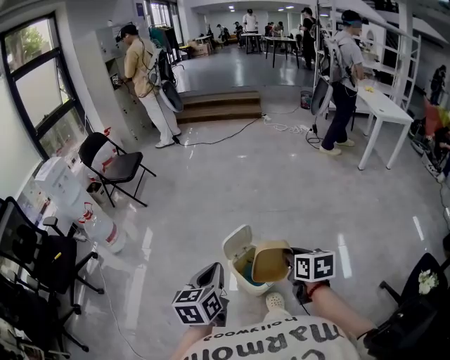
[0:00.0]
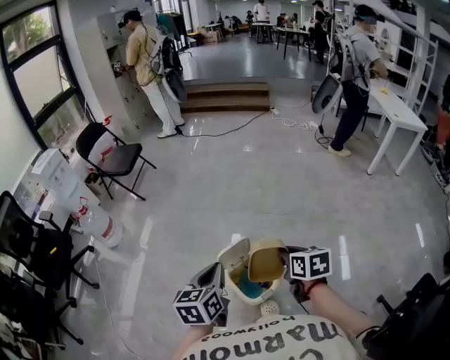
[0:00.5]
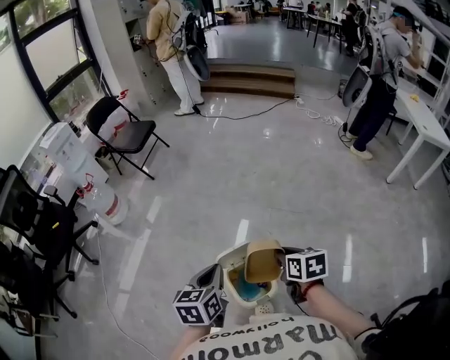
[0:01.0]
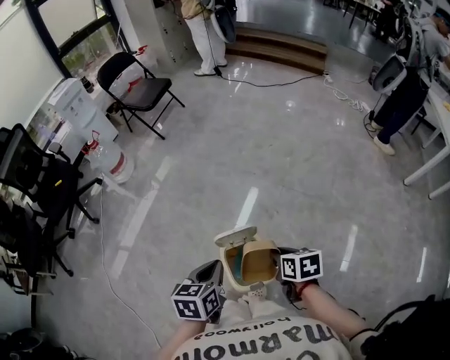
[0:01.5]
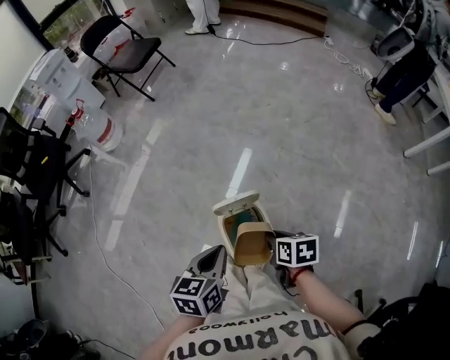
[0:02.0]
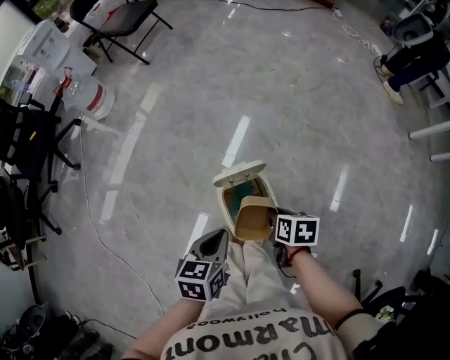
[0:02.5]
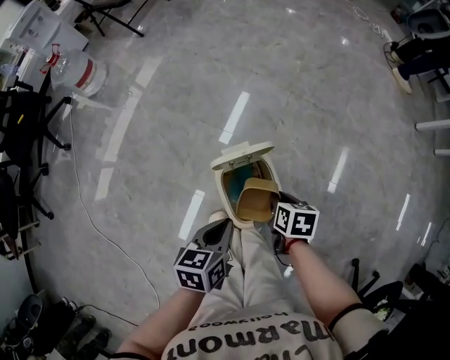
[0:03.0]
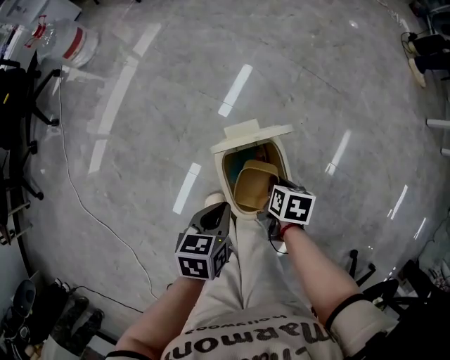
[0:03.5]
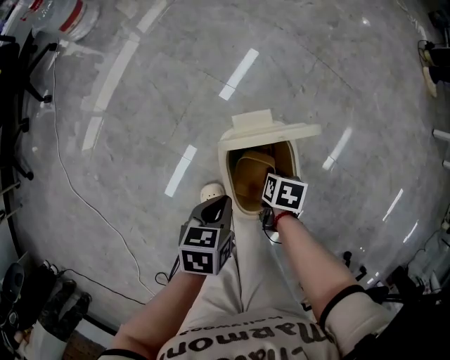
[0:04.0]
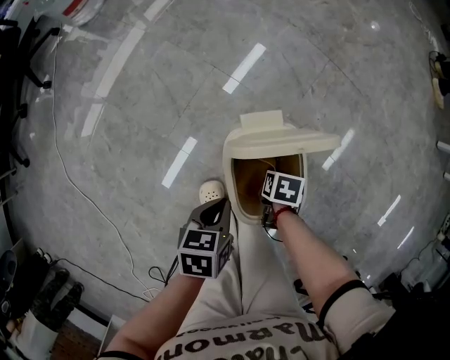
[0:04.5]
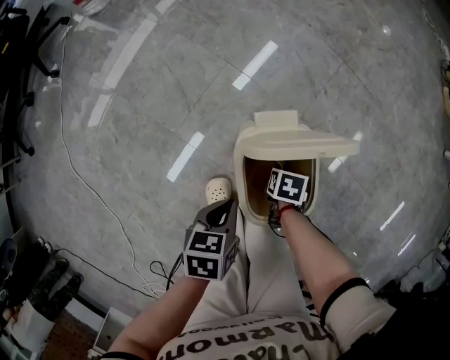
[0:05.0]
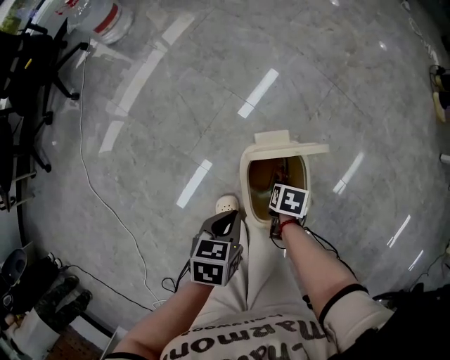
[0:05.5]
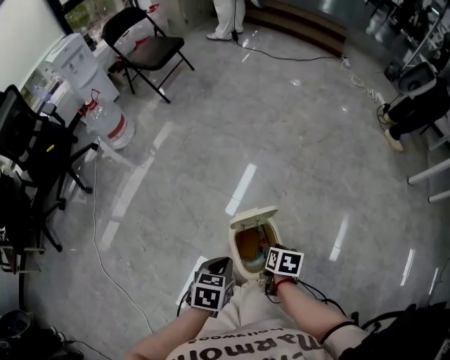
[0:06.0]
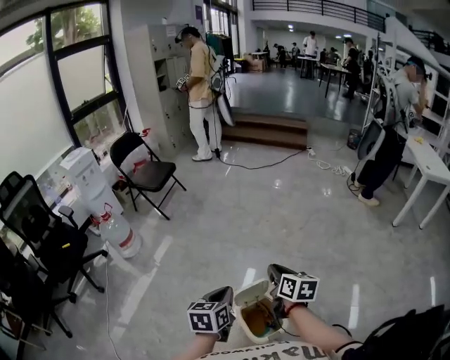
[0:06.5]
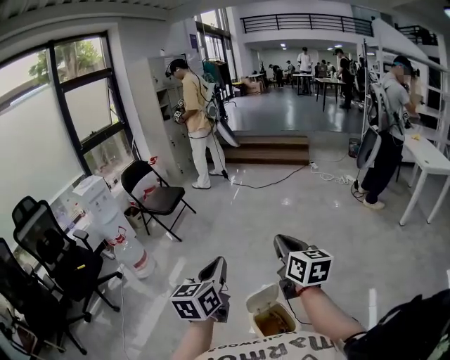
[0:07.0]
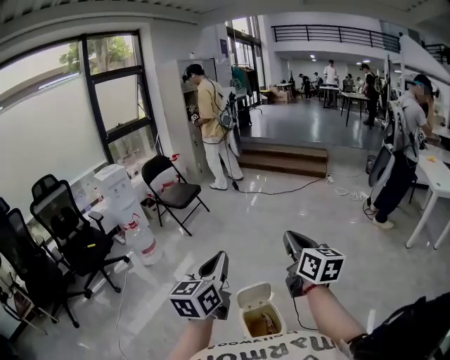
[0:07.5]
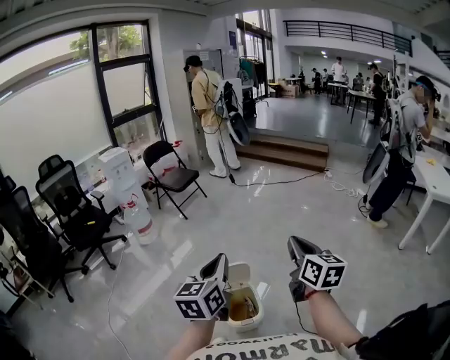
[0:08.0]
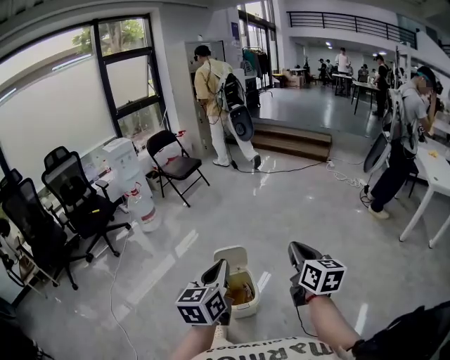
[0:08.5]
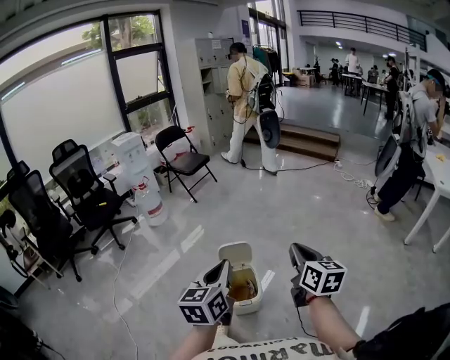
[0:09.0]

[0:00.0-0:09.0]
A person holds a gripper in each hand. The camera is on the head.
0.0 to 2.0 s: The grippers both shift downward by roughly 20 cm. The right gripper changes its angle by roughly 30 degrees.
2.0 to 4.5 s: Both grippers move downward, roughly 35 cm. The left gripper turns by approximately 20 degrees; the right gripper turns by some 30 degrees.
4.5 to 7.0 s: The grippers both shift upward by approximately 70 cm. The left gripper tilts its fingers approximately 50 degrees upward; the right gripper tilts its fingers about 80 degrees upward.
7.0 to 9.0 s: Both grippers move backward and to the right, some 30 cm.

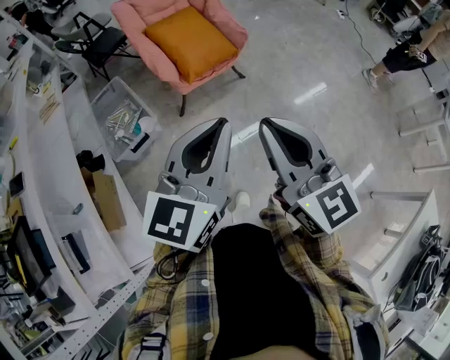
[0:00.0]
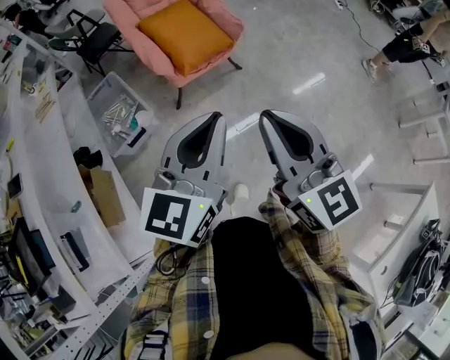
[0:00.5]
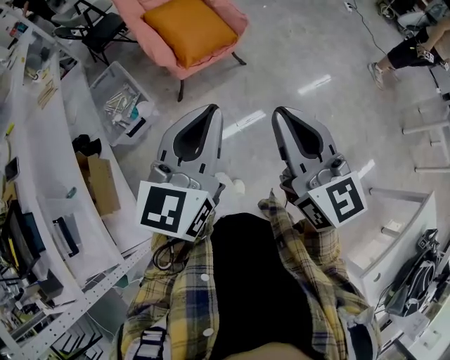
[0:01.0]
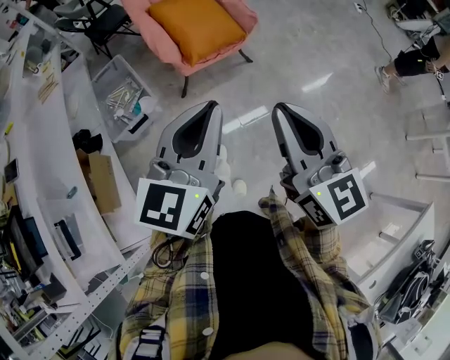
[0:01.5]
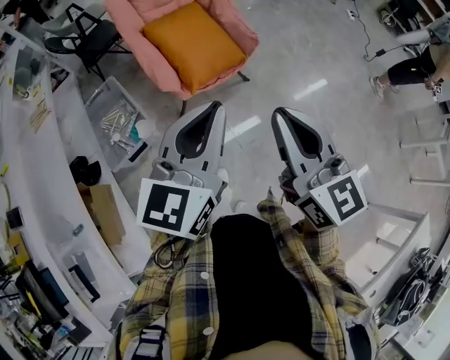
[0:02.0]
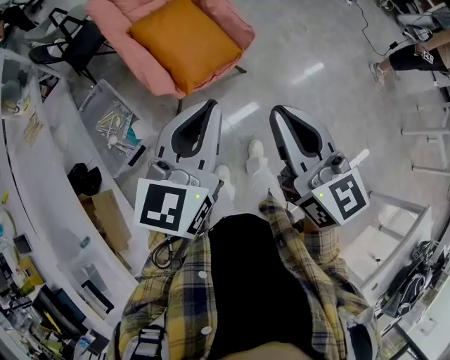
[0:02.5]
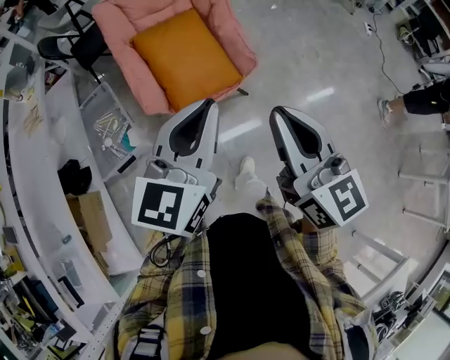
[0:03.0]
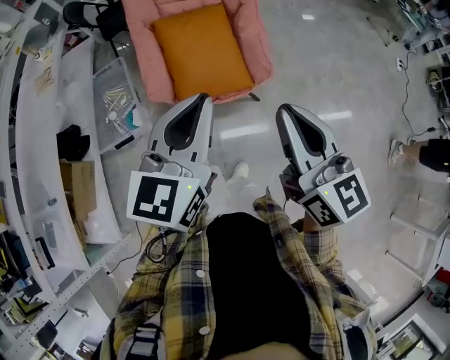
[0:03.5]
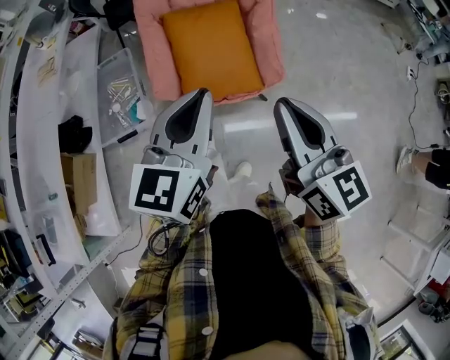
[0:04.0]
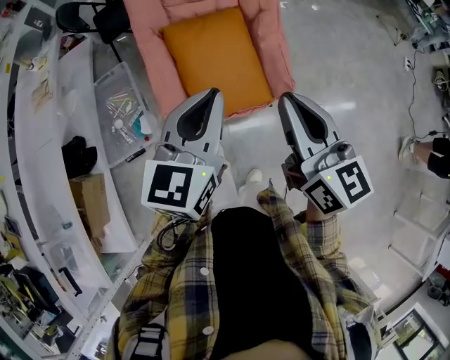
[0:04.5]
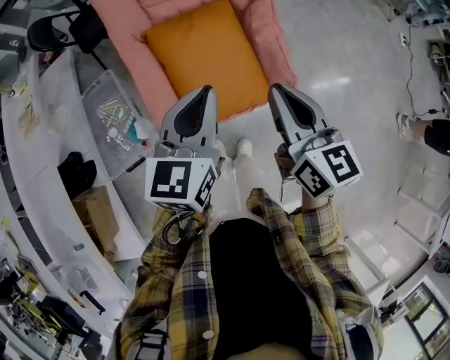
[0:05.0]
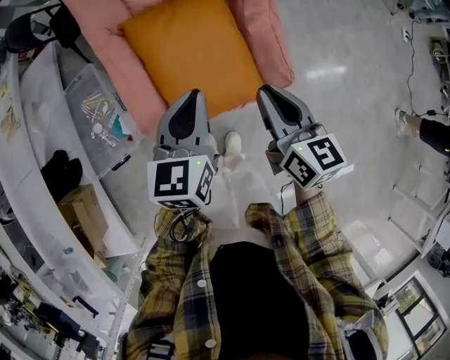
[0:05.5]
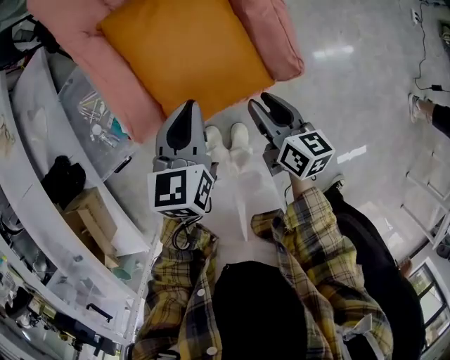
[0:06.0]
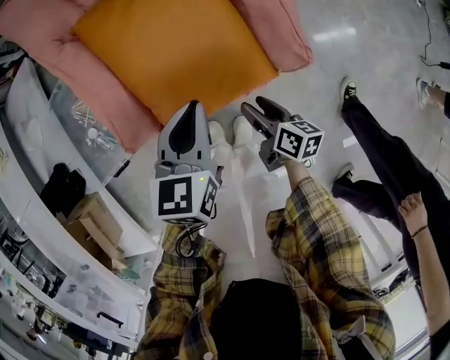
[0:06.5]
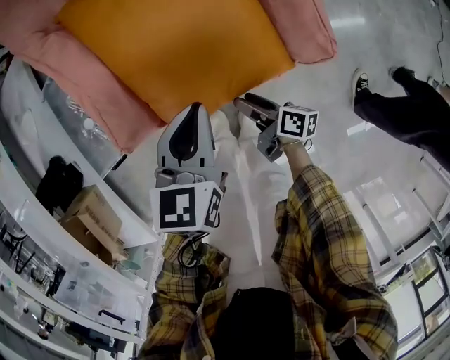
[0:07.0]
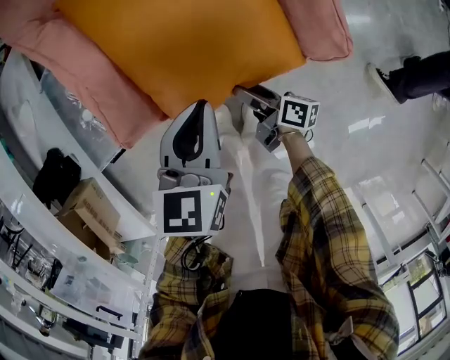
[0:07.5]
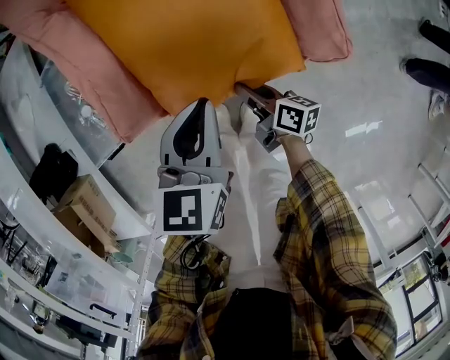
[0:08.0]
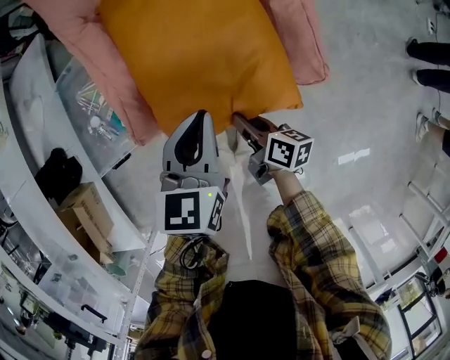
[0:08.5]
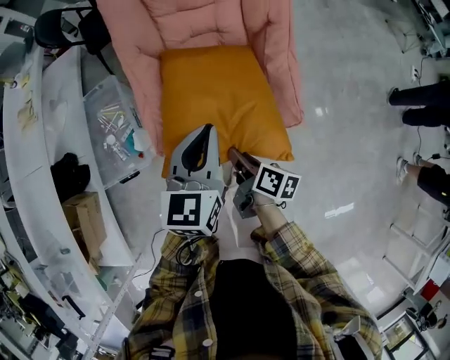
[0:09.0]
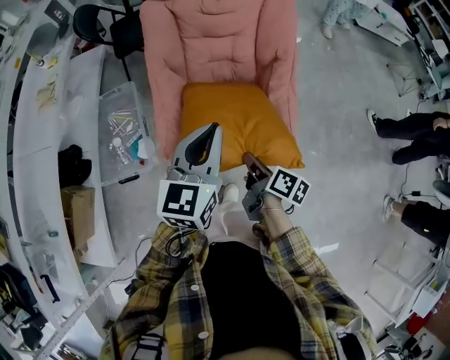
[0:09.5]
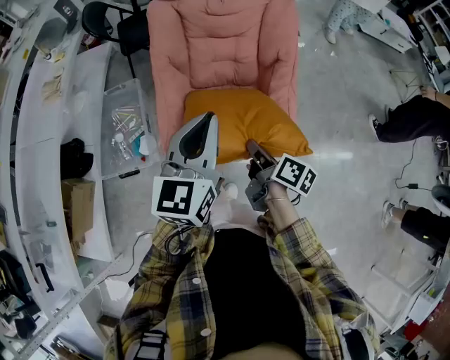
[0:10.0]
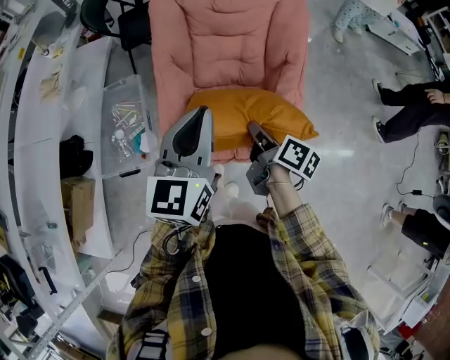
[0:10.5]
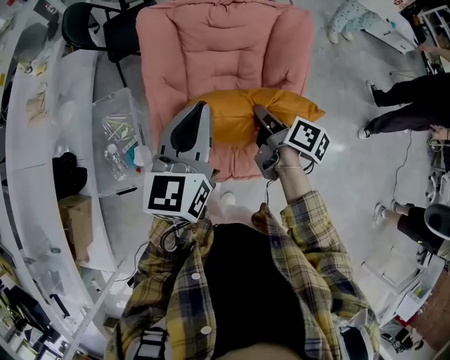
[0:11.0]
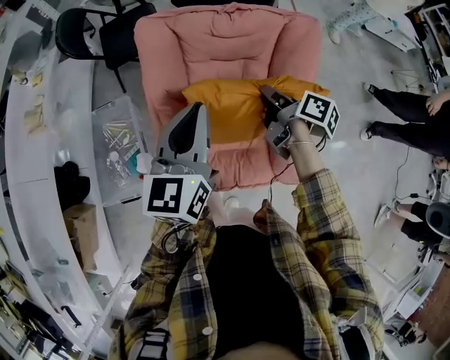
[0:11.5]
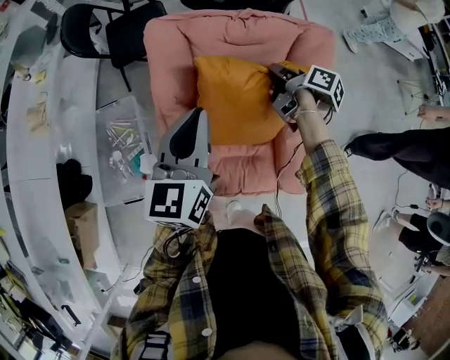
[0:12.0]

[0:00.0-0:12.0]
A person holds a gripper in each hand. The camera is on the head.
0.0 to 2.0 s: The two grippers go roughly 20 cm forward.
2.0 to 4.0 s: The left gripper ends up about 30 cm from where it was, and rotates roughly 30 degrees. Meanwhile the right gripper changes place by roughly 35 cm, and rotates approximately 20 degrees.
4.0 to 6.0 s: The two grippers go about 40 cm downward and forward. The right gripper rotates approximately 30 degrees, and opens its fingers.
6.0 to 8.0 s: The left gripper shifts approximately 10 cm downward. The right gripper heads downward, covering some 25 cm, rotates approximately 30 degrees, and opens, then closes once more.
8.0 to 10.0 s: Both grippers move upward, some 40 cm. The left gripper swivels approximately 30 degrees.
10.0 to 12.0 s: The right gripper heads forward, covering roughly 50 cm, while the left gripper moves forward, some 30 cm.

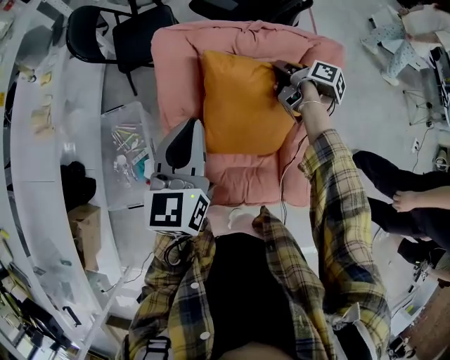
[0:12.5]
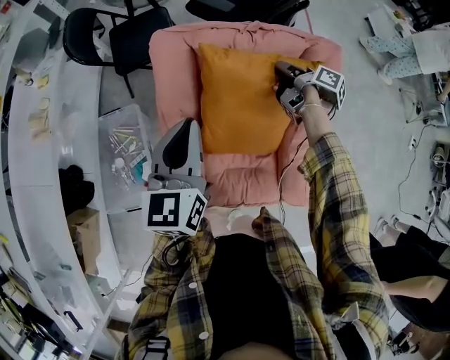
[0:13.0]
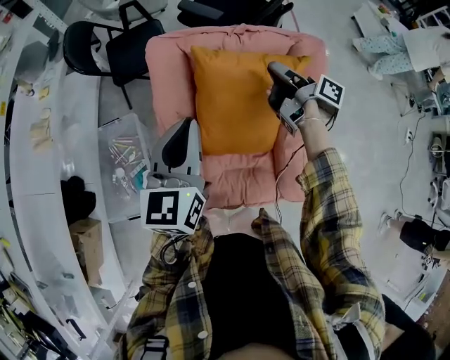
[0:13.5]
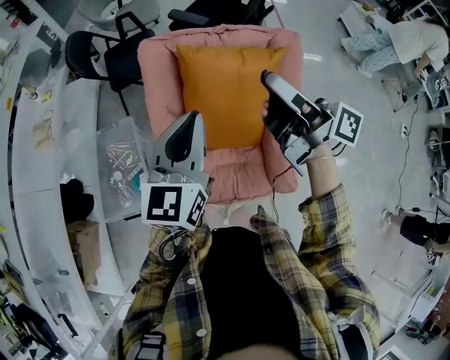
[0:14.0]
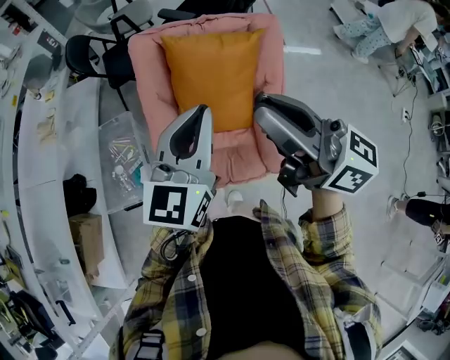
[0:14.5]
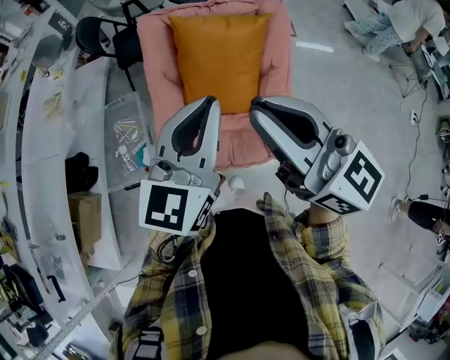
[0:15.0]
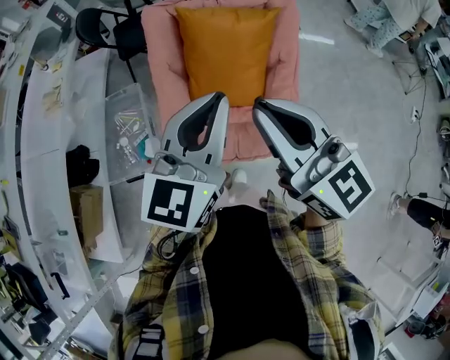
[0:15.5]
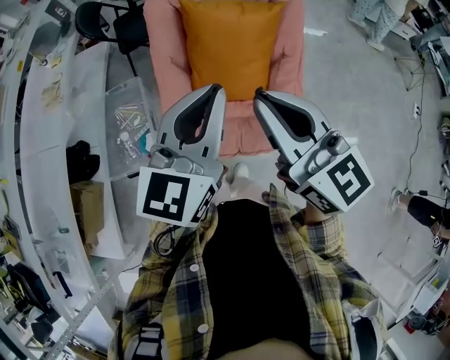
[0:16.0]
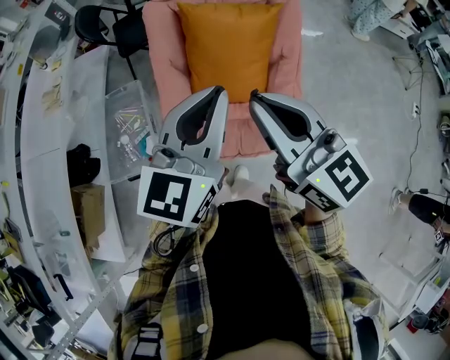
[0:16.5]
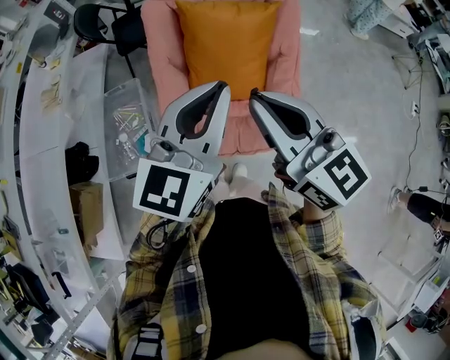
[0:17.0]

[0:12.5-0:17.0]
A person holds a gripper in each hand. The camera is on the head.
12.5 to 14.5 s: The left gripper travels backward, upward and to the right by about 30 cm, and changes its angle by roughly 20 degrees. Meanwhile the right gripper moves backward and upward, approximately 50 cm, and tilts its fingers about 40 degrees upward.
14.5 to 17.0 s: The left gripper shifts about 5 cm backward; the right gripper is displaced to the left by about 5 cm, and turns by about 30 degrees.

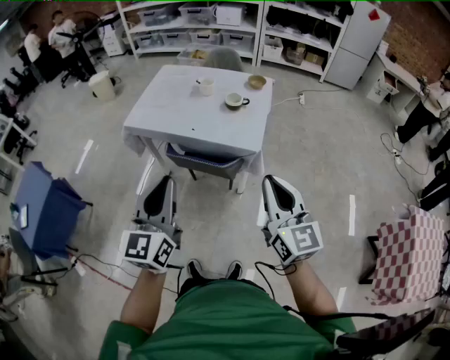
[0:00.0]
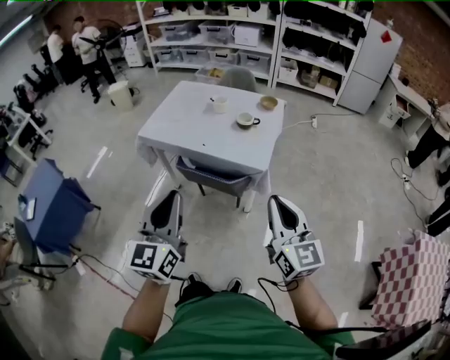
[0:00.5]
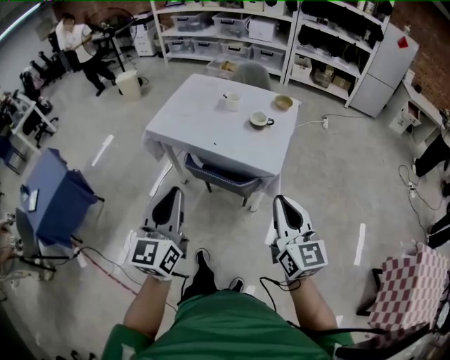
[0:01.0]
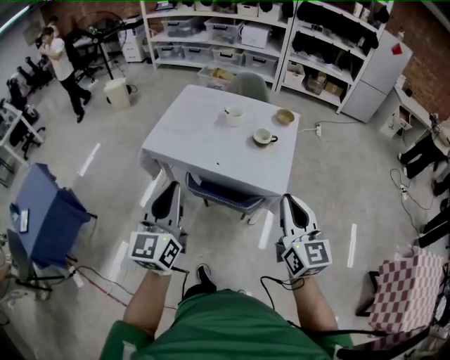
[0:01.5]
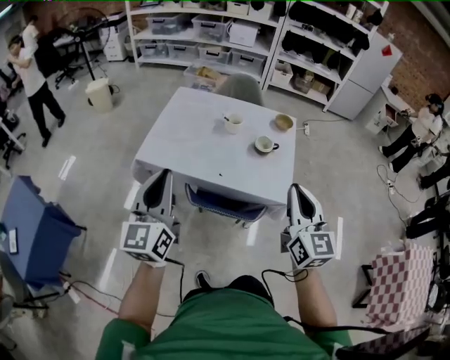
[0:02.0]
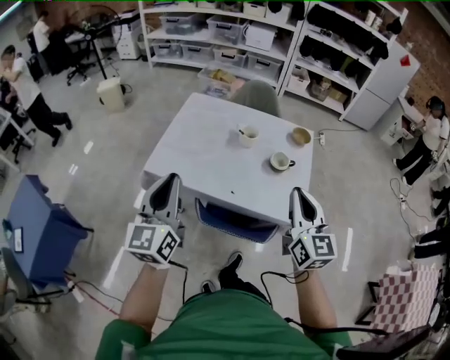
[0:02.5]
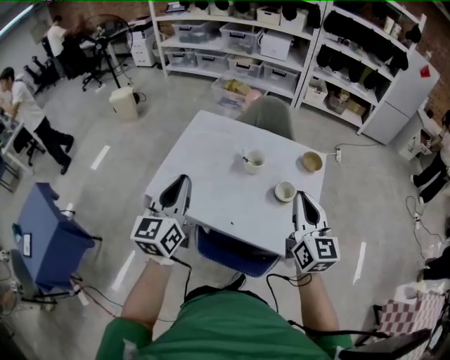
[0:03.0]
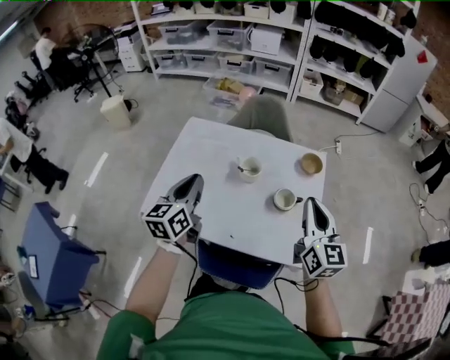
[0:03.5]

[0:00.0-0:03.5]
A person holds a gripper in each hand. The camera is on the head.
0.0 to 2.0 s: Both grippers travel together forward and to the left, roughly 30 cm.
2.0 to 3.5 s: The two grippers go some 35 cm forward. The left gripper turns by about 20 degrees.
